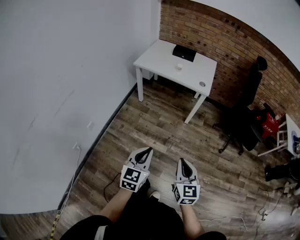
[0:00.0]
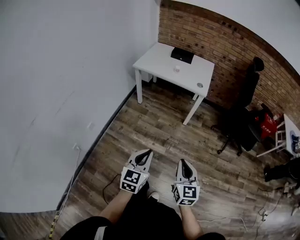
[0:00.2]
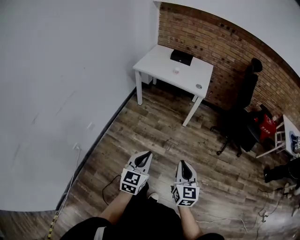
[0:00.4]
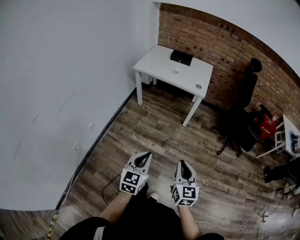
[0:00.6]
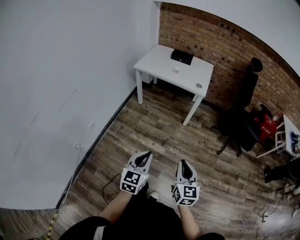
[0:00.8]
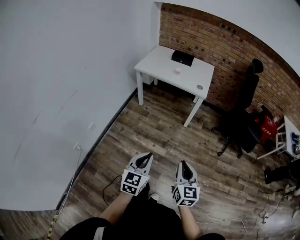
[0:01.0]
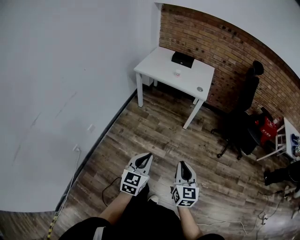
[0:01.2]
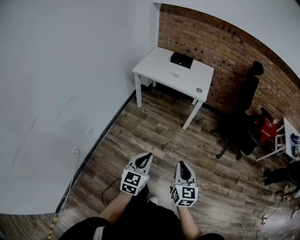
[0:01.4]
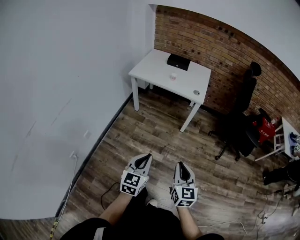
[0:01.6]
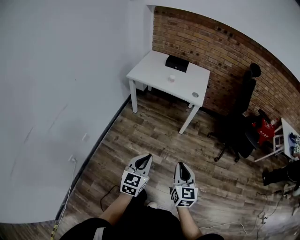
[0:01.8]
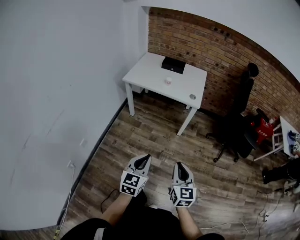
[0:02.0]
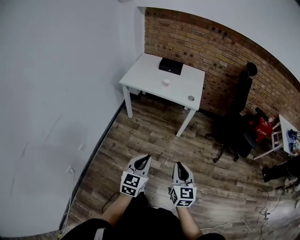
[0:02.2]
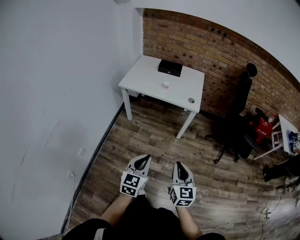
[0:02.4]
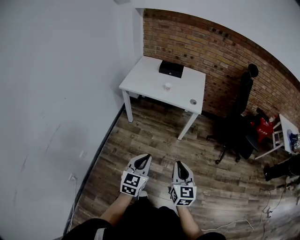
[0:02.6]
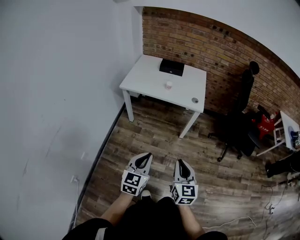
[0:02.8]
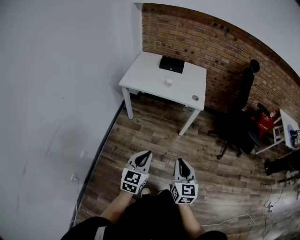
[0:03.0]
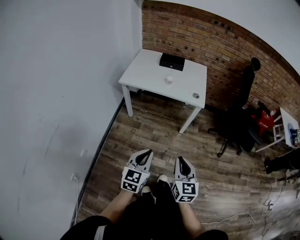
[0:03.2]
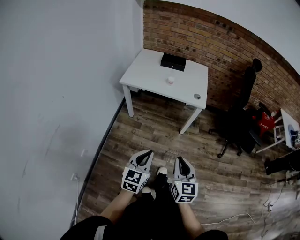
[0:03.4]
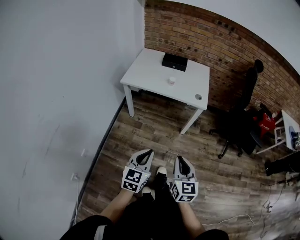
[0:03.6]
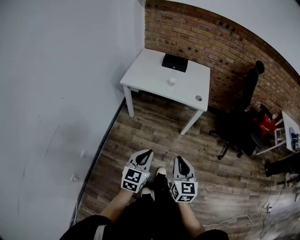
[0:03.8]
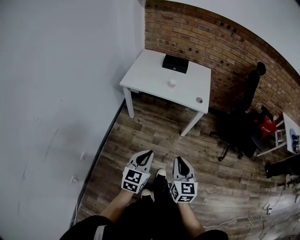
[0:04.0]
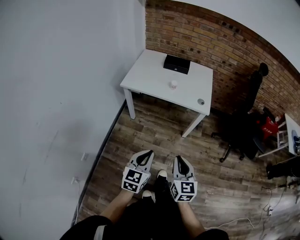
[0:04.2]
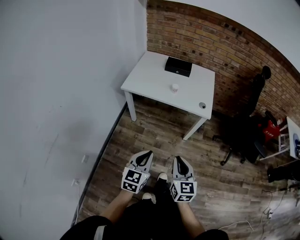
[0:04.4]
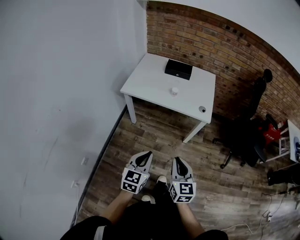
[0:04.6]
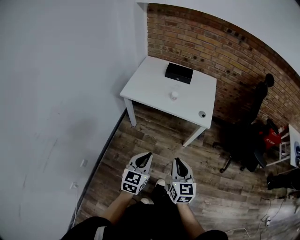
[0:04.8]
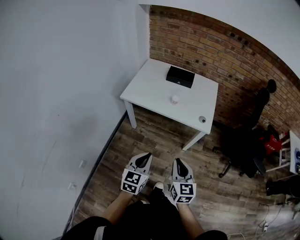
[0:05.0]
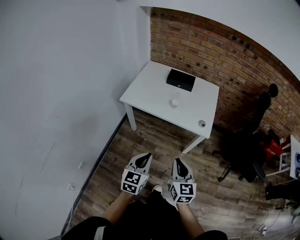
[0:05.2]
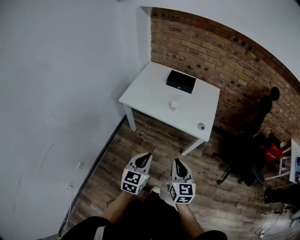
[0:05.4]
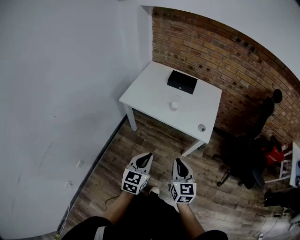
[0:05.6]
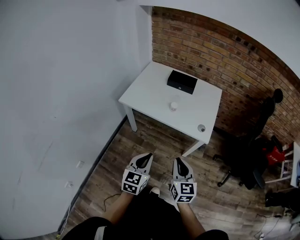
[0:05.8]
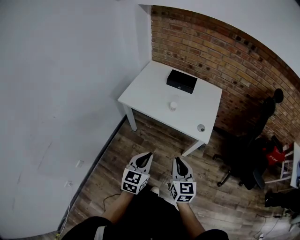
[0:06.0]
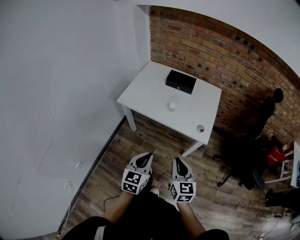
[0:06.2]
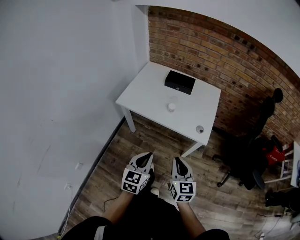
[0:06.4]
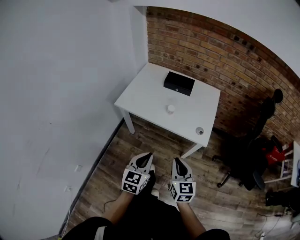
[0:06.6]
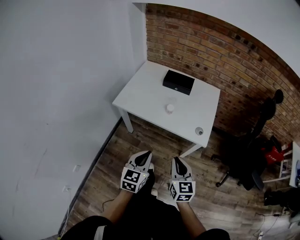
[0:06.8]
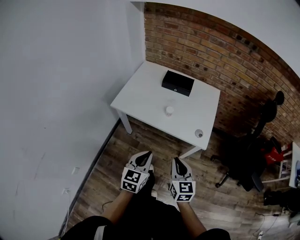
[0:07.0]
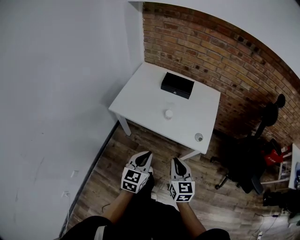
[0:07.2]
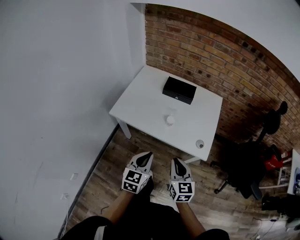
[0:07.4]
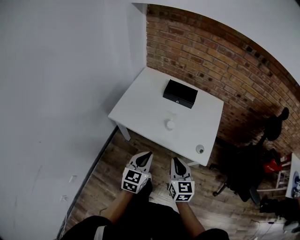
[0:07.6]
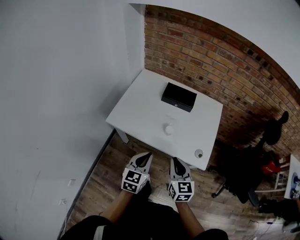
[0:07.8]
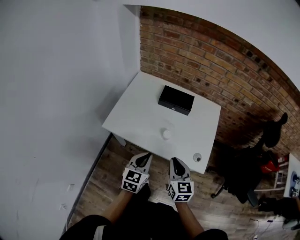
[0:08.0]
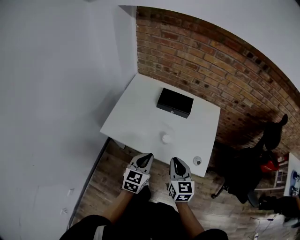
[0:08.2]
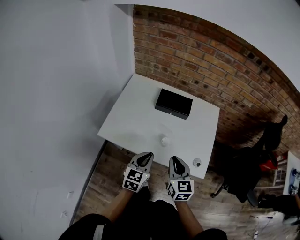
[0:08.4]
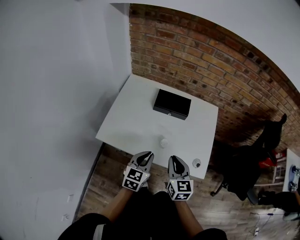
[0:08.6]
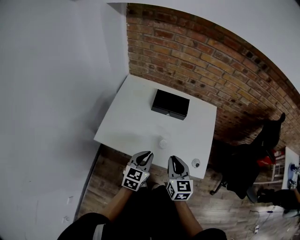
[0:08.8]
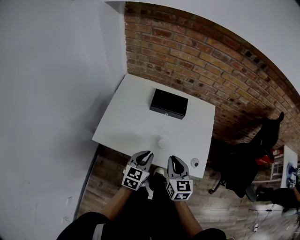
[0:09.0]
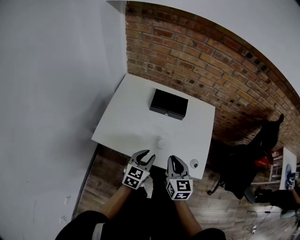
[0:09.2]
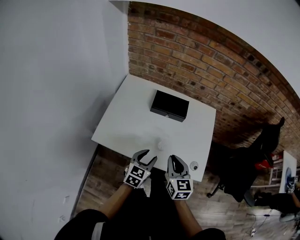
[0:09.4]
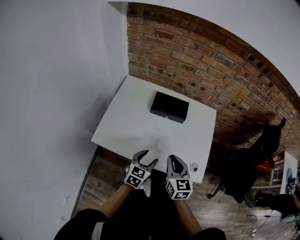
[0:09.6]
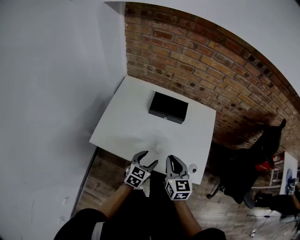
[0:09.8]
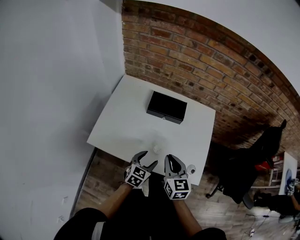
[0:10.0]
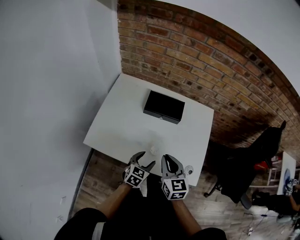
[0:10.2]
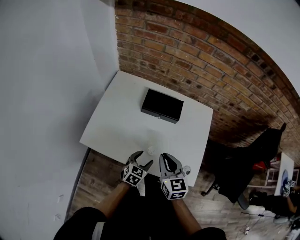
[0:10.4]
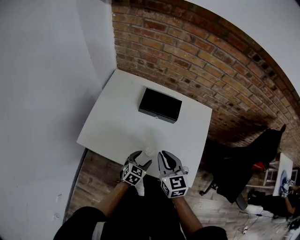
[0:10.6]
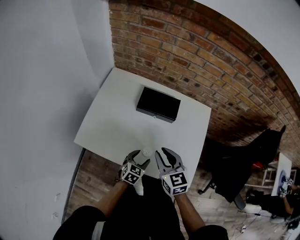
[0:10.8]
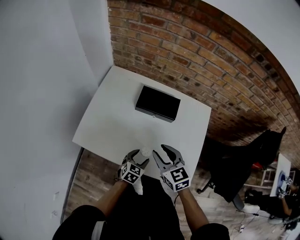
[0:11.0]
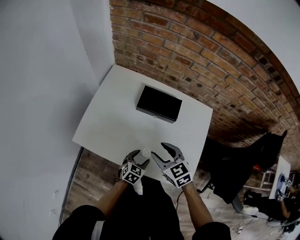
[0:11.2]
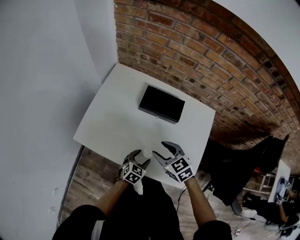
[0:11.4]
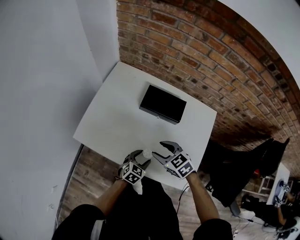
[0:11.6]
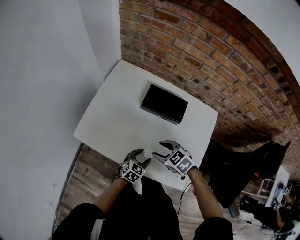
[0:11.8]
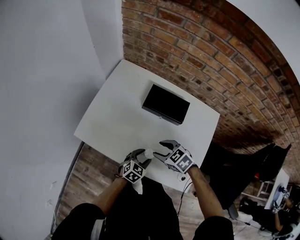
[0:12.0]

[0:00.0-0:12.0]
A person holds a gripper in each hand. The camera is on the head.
1.6 to 3.0 s: Both grippers move forward and to the left, roughly 15 cm.
3.0 to 4.4 s: The two grippers go roughly 10 cm forward.
4.4 to 6.0 s: The two grippers go some 20 cm forward and to the right.
6.0 to 7.6 s: The two grippers go roughly 20 cm forward.
7.6 to 9.0 s: The two grippers go about 15 cm forward.
9.0 to 10.4 s: The right gripper travels forward by some 5 cm. The left gripper is displaced downward and forward by roughly 15 cm, and opens its fingers.
10.4 to 12.0 s: The right gripper heads downward, covering approximately 10 cm, swivels roughly 60 degrees, and opens its fingers, while the left gripper shifts some 5 cm downward.

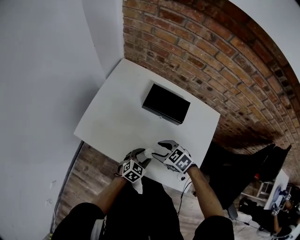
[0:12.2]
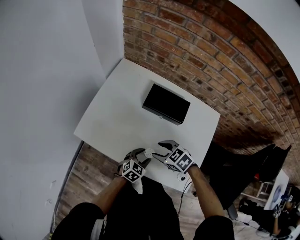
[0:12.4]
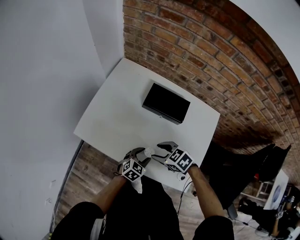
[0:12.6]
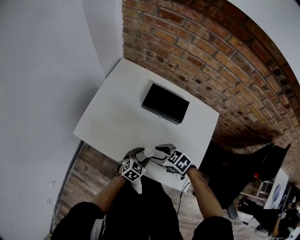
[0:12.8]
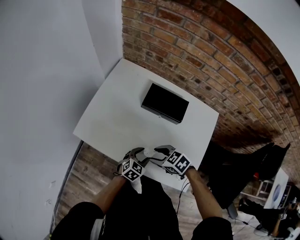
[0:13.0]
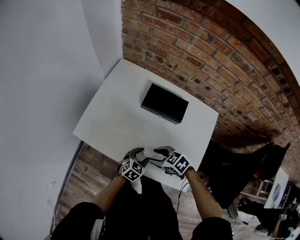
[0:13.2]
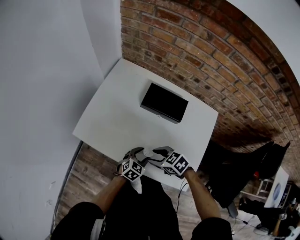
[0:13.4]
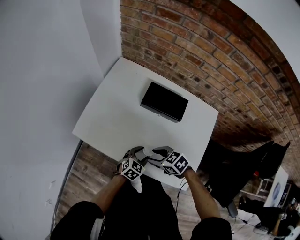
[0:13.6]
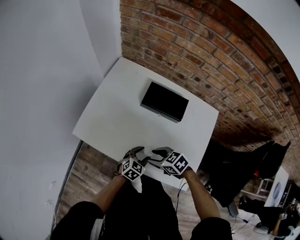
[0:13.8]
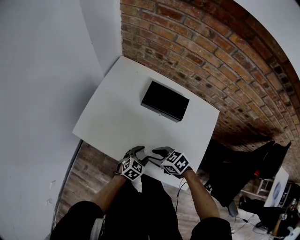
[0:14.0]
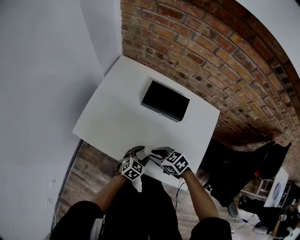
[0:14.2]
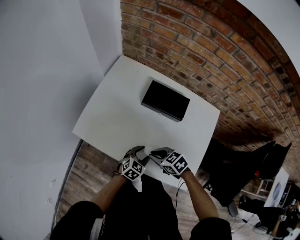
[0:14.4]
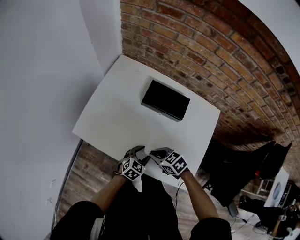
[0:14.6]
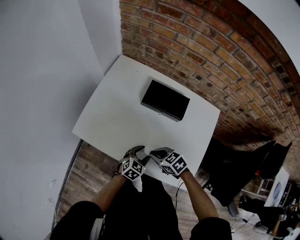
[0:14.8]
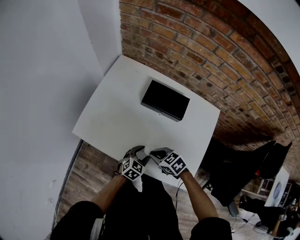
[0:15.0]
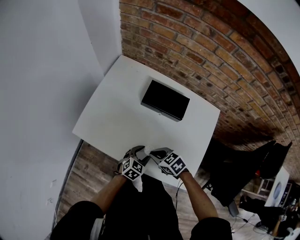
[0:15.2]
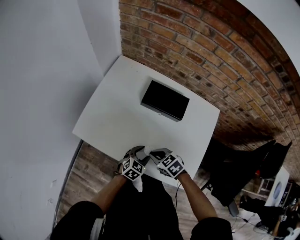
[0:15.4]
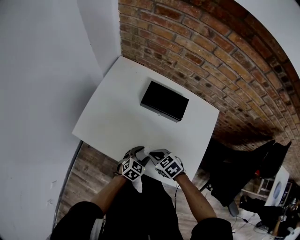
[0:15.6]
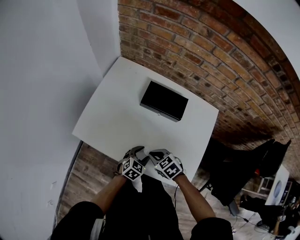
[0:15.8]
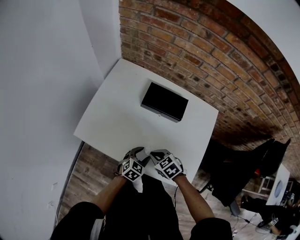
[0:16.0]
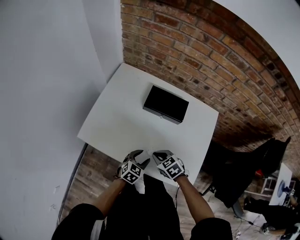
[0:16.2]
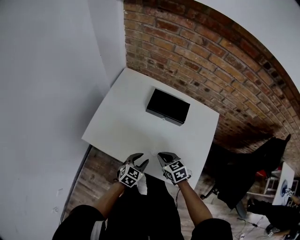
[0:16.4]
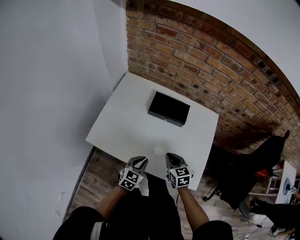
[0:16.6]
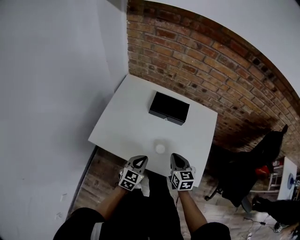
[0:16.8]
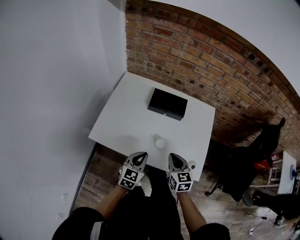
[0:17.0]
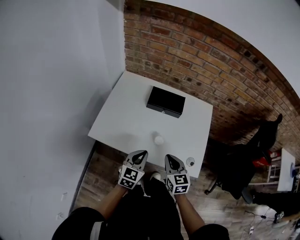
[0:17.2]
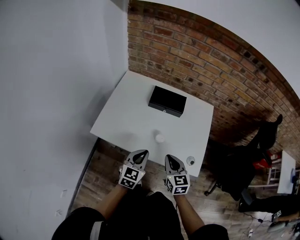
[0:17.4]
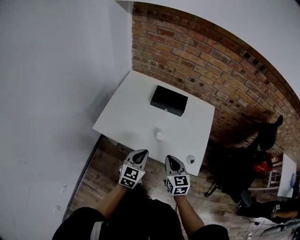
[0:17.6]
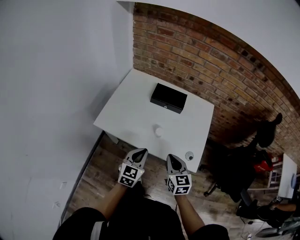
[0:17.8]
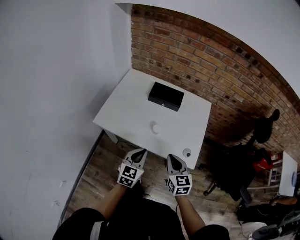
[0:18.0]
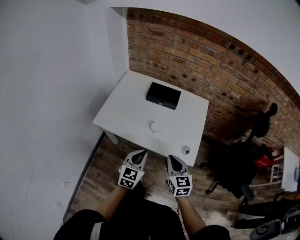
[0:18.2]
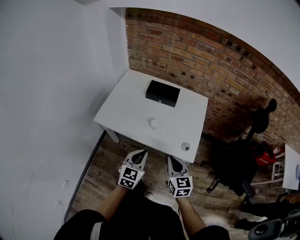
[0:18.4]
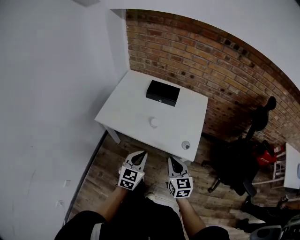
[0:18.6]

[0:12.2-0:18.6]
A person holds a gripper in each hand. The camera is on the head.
12.2 to 13.8 s: The grippers move only a little.
13.8 to 15.4 s: The right gripper closes its fingers.
15.4 to 17.0 s: The right gripper travels upward and backward by roughly 10 cm, and rotates about 50 degrees. The left gripper is displaced upward and to the left by roughly 15 cm, rotates roughly 20 degrees, and closes up.
17.0 to 18.6 s: The right gripper is displaced backward by approximately 20 cm. The left gripper heads backward and upward, covering about 20 cm.

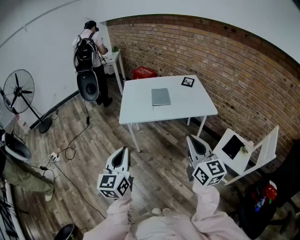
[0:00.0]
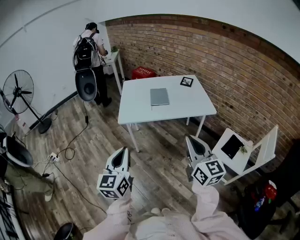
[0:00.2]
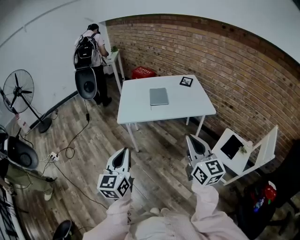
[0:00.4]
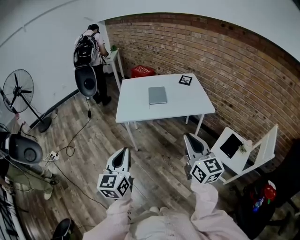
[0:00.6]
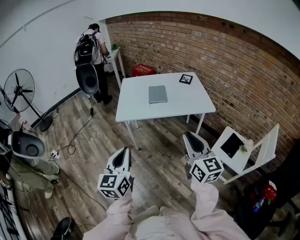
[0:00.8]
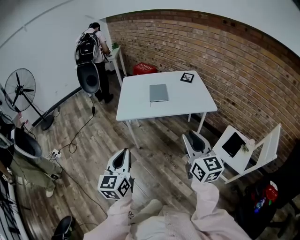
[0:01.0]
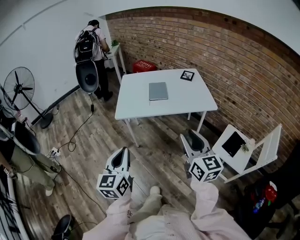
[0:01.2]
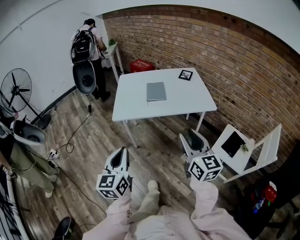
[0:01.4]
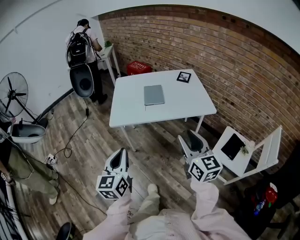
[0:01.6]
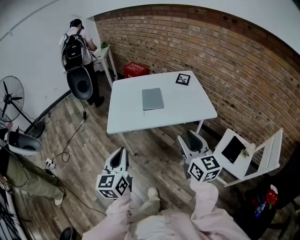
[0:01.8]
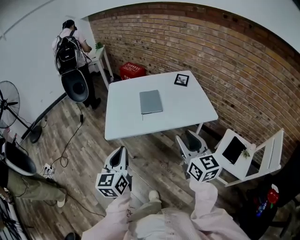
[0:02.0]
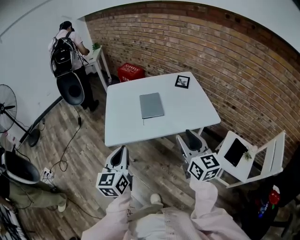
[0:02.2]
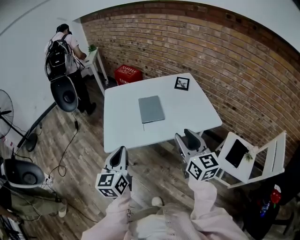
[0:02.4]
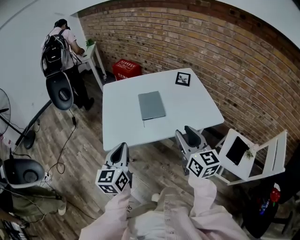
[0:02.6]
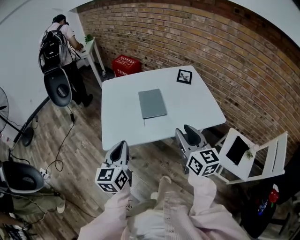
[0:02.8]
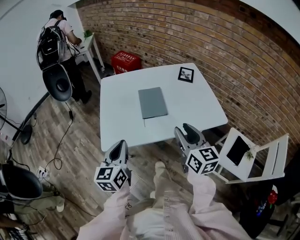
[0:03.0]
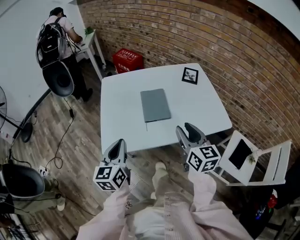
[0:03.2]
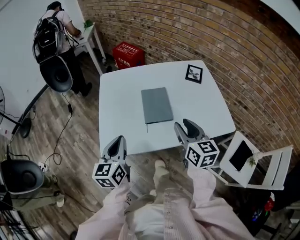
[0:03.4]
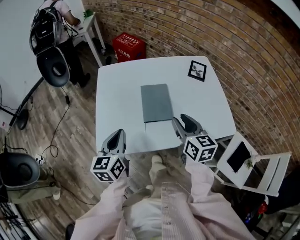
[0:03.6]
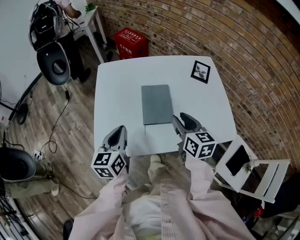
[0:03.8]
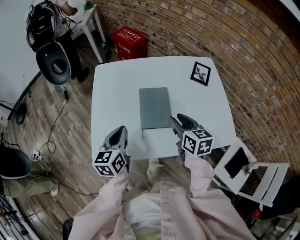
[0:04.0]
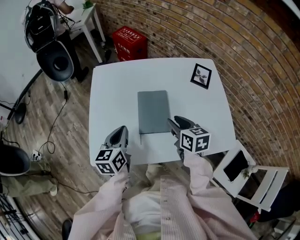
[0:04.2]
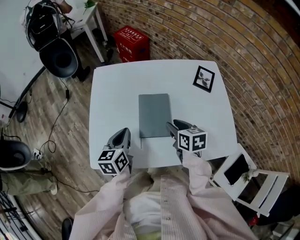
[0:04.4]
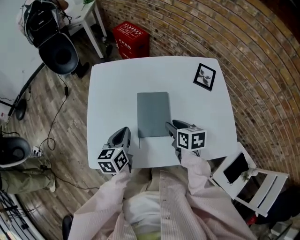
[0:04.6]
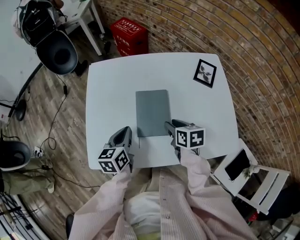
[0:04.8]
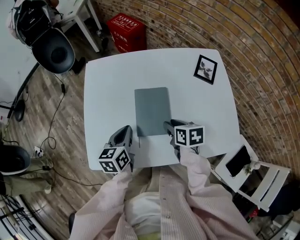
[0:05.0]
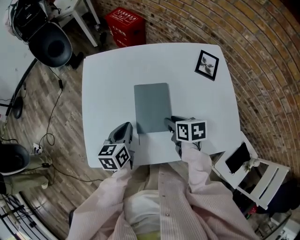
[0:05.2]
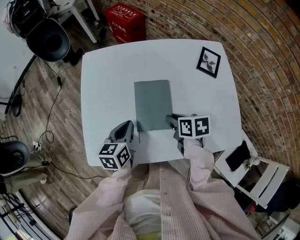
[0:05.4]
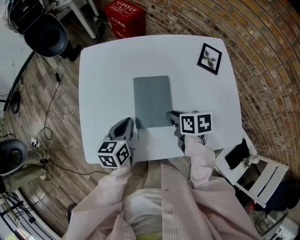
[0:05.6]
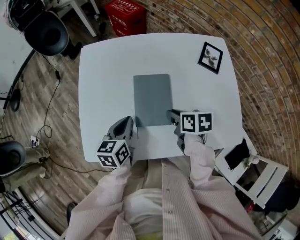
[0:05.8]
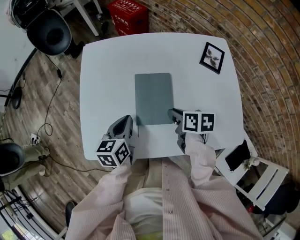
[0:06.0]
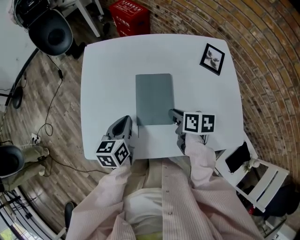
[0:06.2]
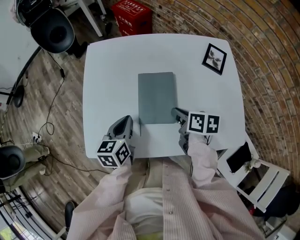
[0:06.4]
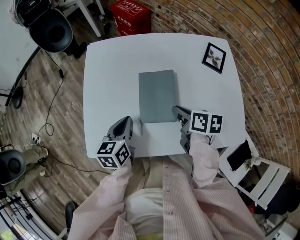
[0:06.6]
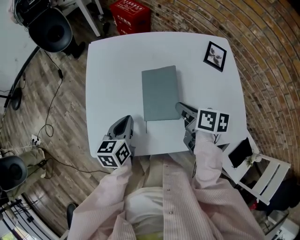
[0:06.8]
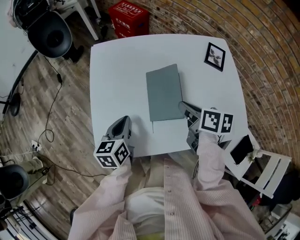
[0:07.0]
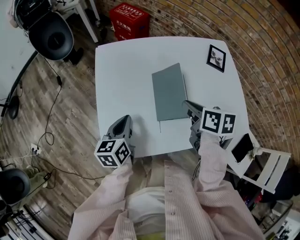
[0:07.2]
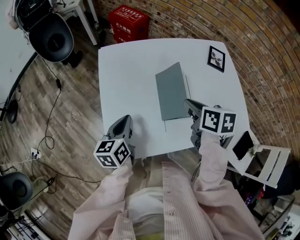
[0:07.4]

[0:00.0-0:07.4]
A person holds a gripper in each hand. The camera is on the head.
0.0 to 1.4 s: The right gripper moves forward, roughly 5 cm, and opens, while the left gripper shifts by approximately 5 cm.
1.4 to 3.0 s: The grippers both shift forward by some 30 cm.
3.0 to 4.4 s: Both grippers move forward and downward, approximately 25 cm. The right gripper angles its fingers downward, by about 30 degrees.
4.4 to 6.0 s: The right gripper swivels approximately 20 degrees, and closes.
6.0 to 7.4 s: The left gripper goes roughly 10 cm to the left. Meanwhile the right gripper is displaced upward and to the left by roughly 15 cm.
